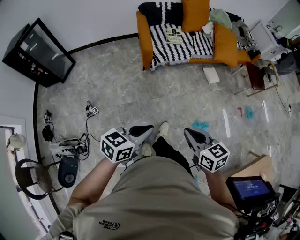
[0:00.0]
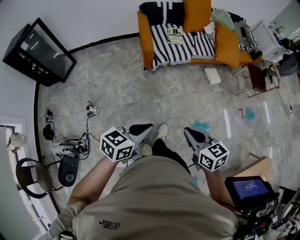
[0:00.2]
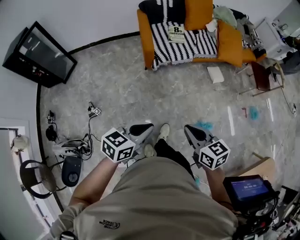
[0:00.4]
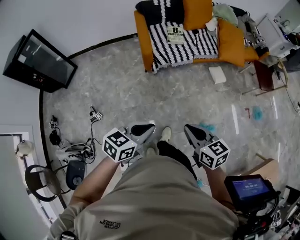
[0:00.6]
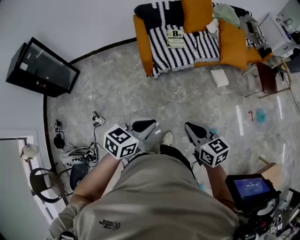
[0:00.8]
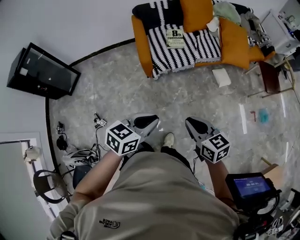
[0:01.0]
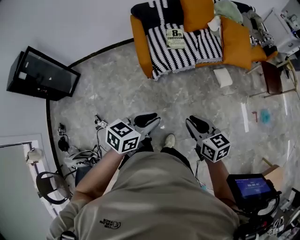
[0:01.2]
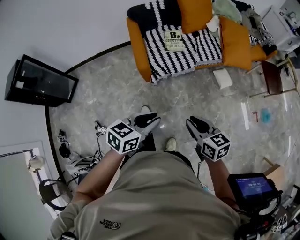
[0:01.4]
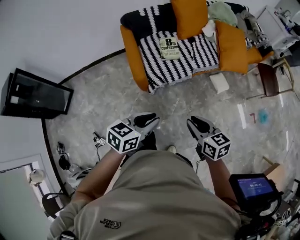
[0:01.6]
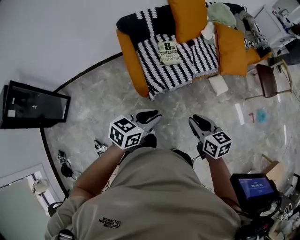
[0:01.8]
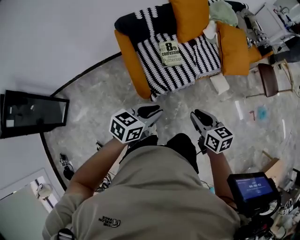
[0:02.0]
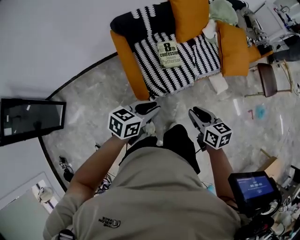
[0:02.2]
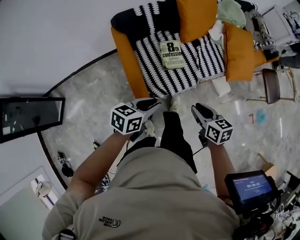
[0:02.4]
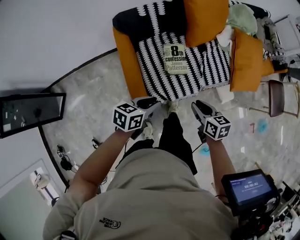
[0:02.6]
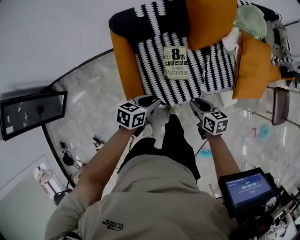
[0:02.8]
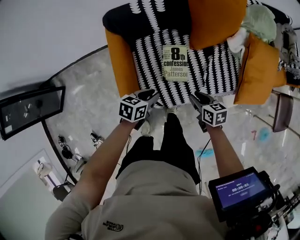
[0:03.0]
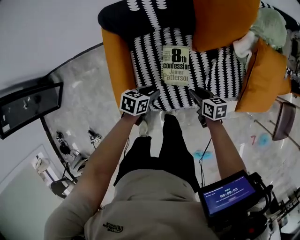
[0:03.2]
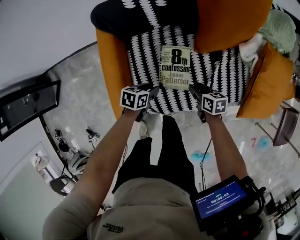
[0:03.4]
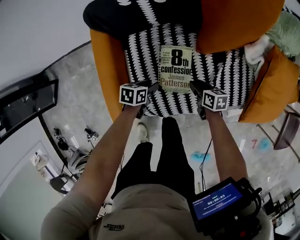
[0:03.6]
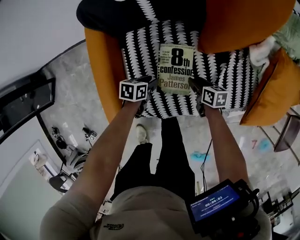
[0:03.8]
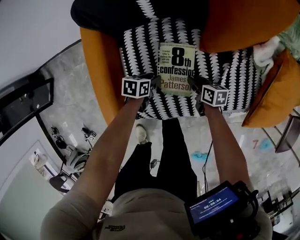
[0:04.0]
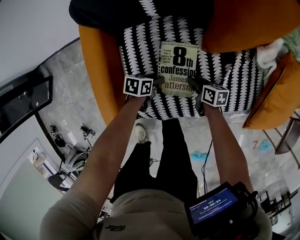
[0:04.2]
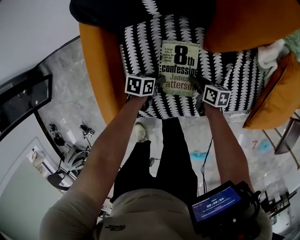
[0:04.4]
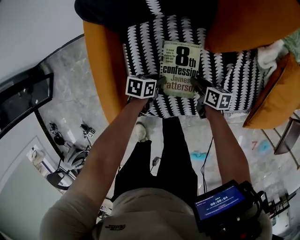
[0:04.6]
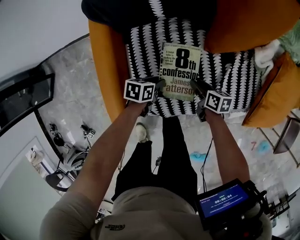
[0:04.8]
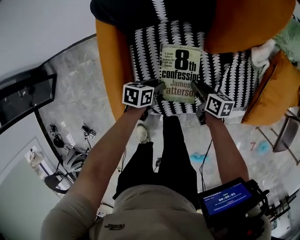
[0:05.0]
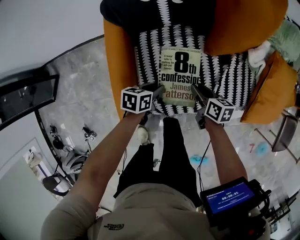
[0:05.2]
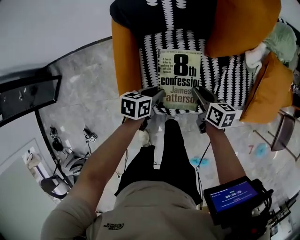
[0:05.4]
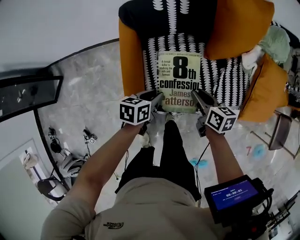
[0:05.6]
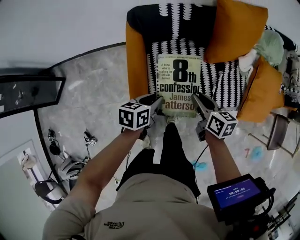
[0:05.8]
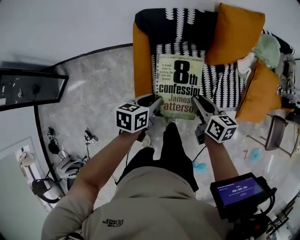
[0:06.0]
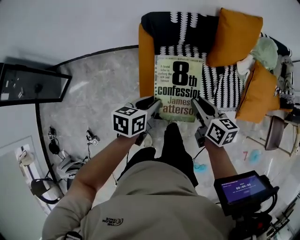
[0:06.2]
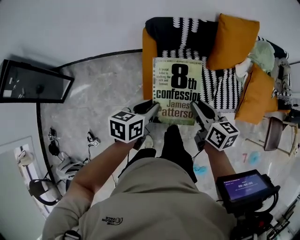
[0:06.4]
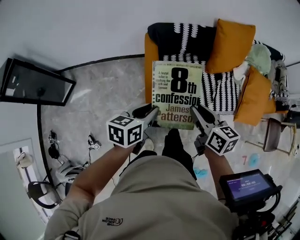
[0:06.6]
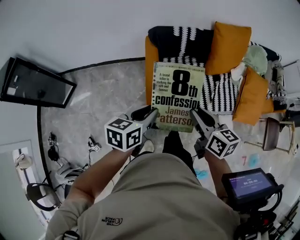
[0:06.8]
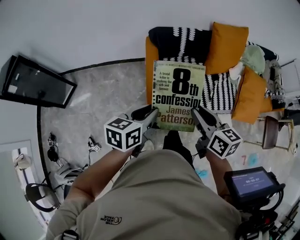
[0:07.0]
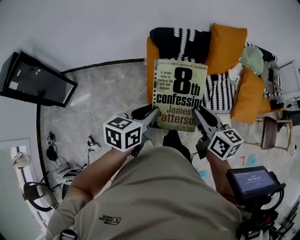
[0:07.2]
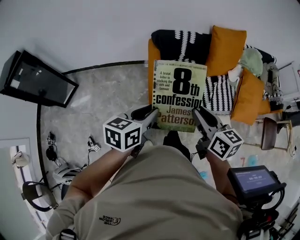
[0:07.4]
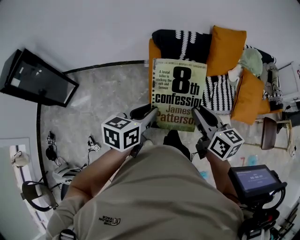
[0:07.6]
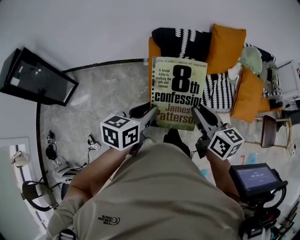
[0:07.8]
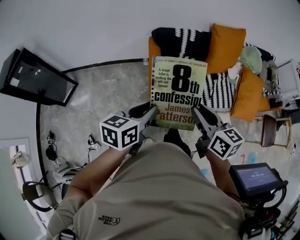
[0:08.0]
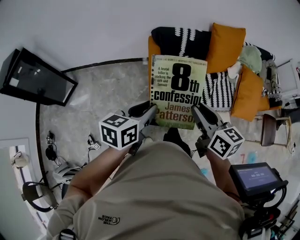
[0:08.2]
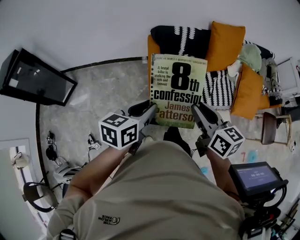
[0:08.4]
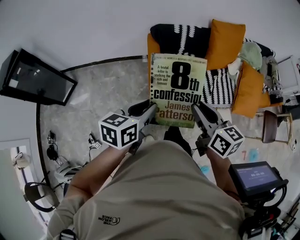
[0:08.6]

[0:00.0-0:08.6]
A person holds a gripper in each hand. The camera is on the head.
0.0 to 1.4 s: Both grippers move forward, approximately 30 cm.
1.4 to 2.8 s: The two grippers travel together, forward, approximately 40 cm.
2.8 to 4.4 s: The right gripper goes some 10 cm upward. Meanwhile the left gripper moves upward, about 5 cm.
4.4 to 7.2 s: The grippers stay close to where they were, moving slightly.
7.2 to 8.6 s: Both grippers stay put.

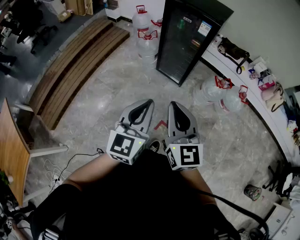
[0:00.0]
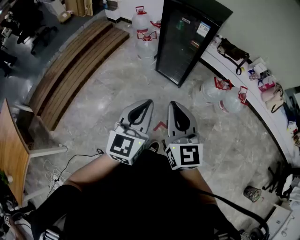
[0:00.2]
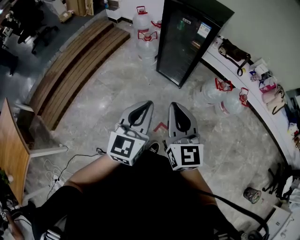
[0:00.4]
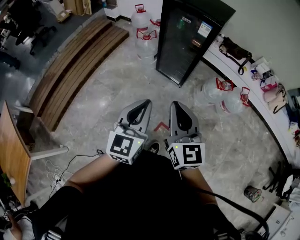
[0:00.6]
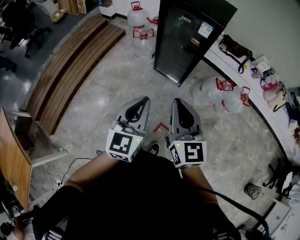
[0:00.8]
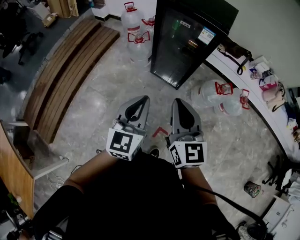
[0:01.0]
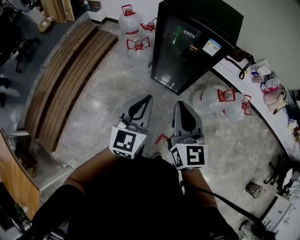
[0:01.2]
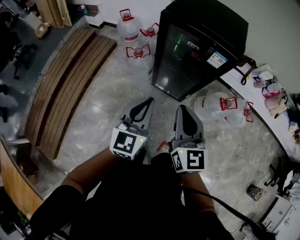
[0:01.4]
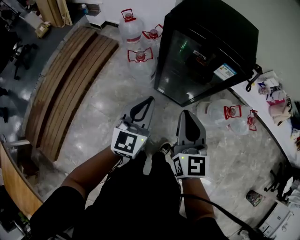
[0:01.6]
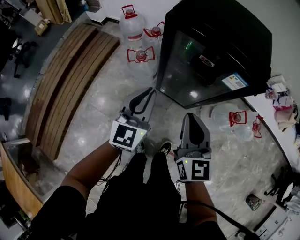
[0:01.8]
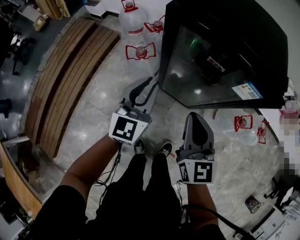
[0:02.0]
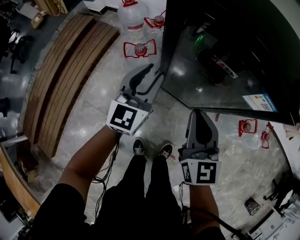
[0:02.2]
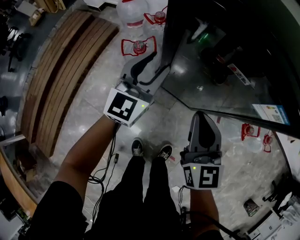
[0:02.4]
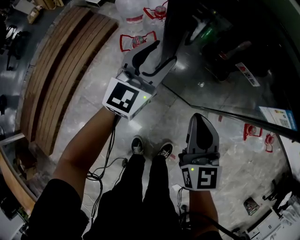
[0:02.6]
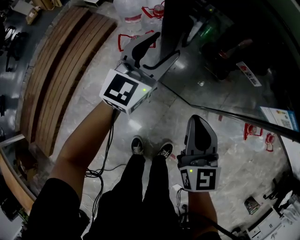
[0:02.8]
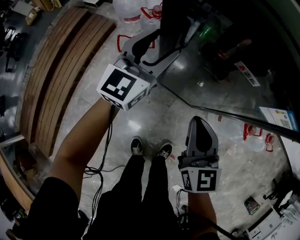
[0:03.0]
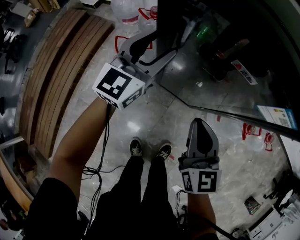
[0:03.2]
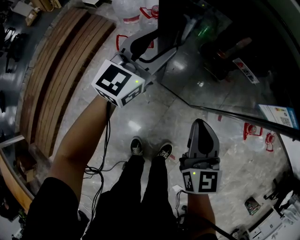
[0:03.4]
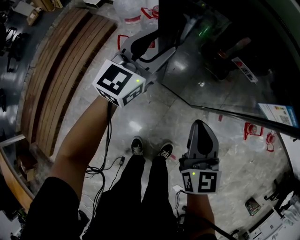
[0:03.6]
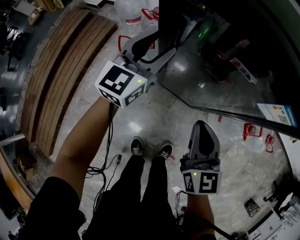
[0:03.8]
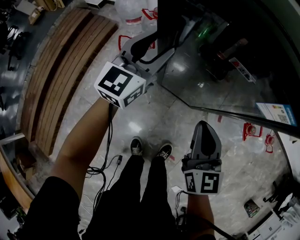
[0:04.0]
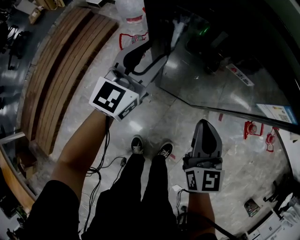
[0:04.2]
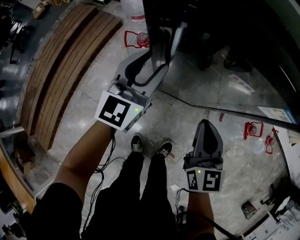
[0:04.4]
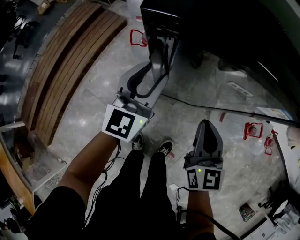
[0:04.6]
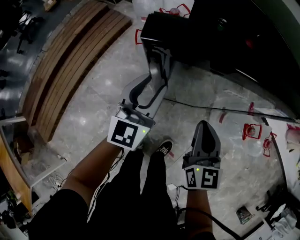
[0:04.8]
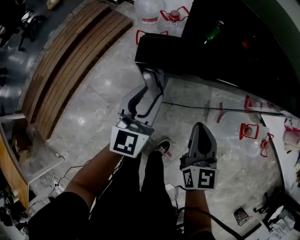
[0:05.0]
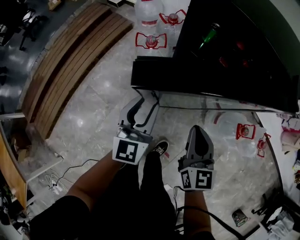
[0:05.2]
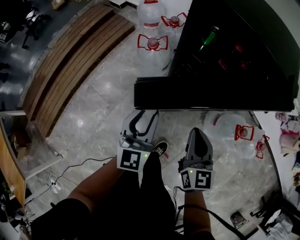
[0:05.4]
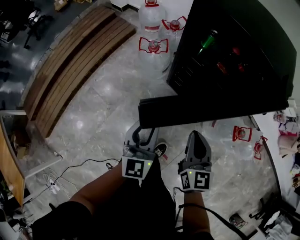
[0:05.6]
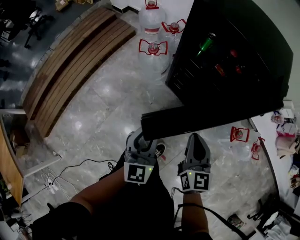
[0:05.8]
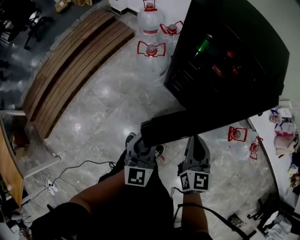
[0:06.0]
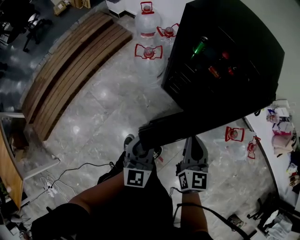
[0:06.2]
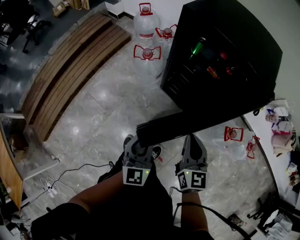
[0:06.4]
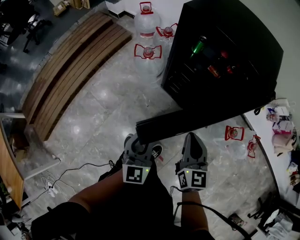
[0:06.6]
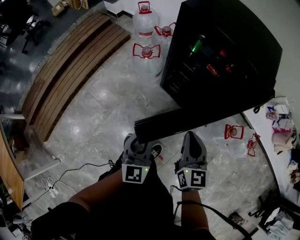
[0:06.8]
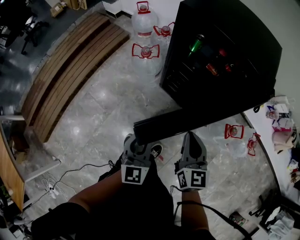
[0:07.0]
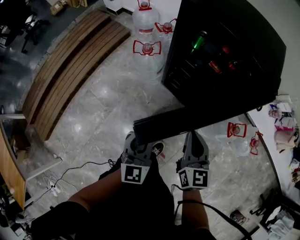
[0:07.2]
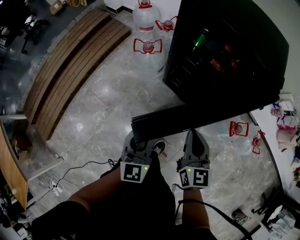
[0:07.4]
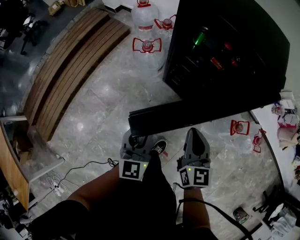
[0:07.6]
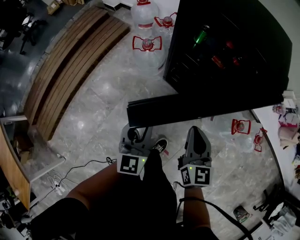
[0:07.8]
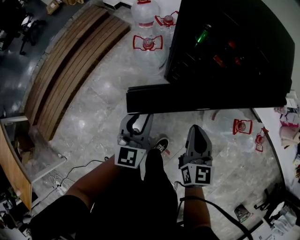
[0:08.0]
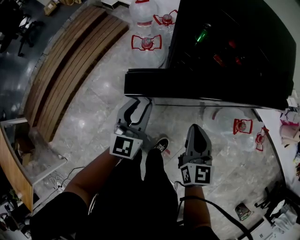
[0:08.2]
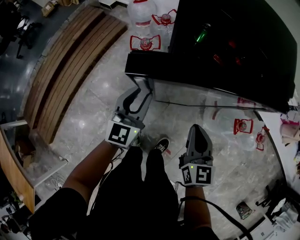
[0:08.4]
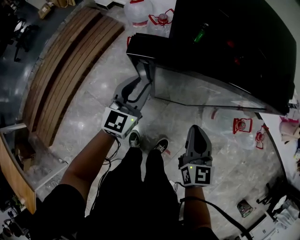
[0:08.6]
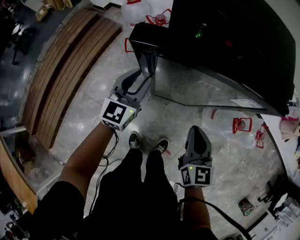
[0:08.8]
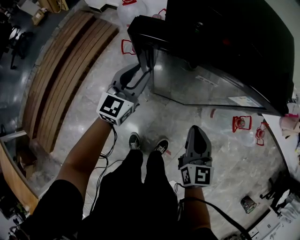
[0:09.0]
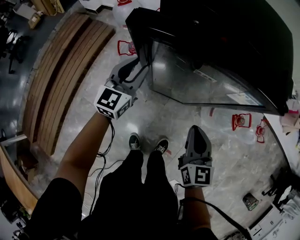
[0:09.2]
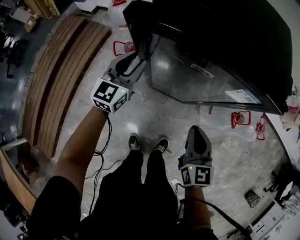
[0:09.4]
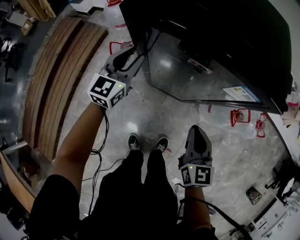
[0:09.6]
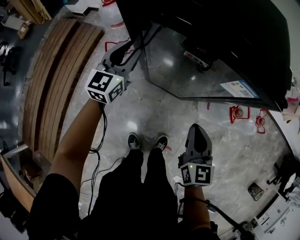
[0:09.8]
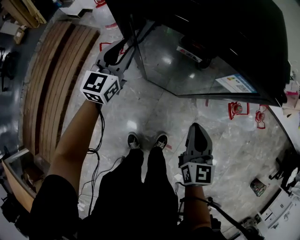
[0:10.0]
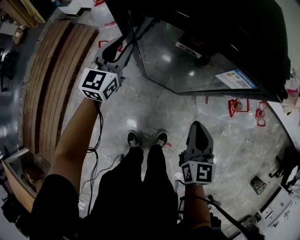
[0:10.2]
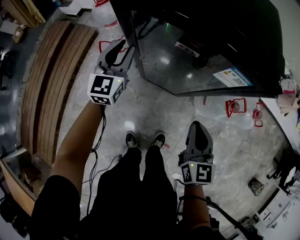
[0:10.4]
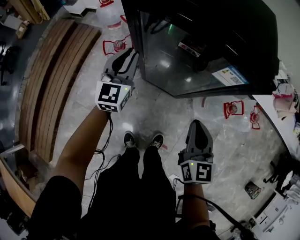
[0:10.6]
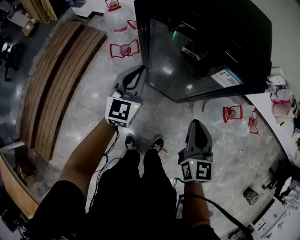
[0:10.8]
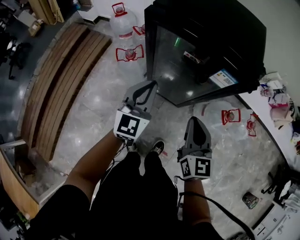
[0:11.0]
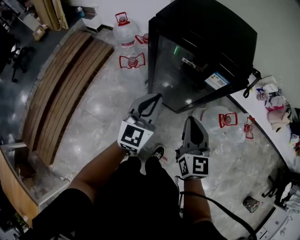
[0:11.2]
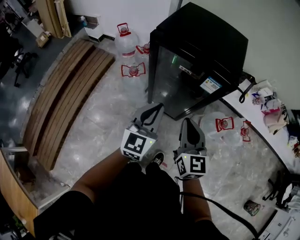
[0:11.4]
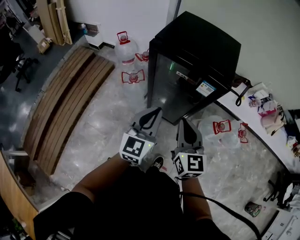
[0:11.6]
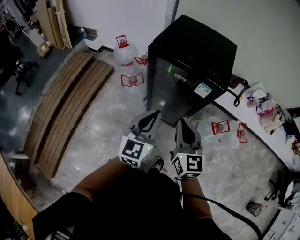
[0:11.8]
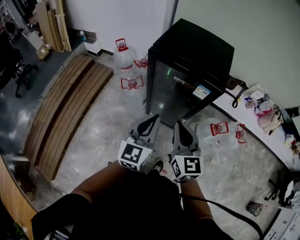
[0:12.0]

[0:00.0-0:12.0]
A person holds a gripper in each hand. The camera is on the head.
0.0 to 1.6 s: The pair of grippers is taken forward, some 40 cm.
1.6 to 3.0 s: The right gripper is displaced downward and forward by roughly 30 cm. The left gripper is displaced forward and downward by approximately 35 cm, and opens its fingers.
3.0 to 4.4 s: The left gripper heads backward, covering approximately 10 cm.
4.4 to 6.0 s: The left gripper travels backward by approximately 30 cm, and changes its angle by roughly 20 degrees, while the right gripper moves backward and upward, roughly 15 cm.
6.0 to 7.6 s: The grippers move only a little.
7.6 to 9.0 s: The right gripper heads forward, covering some 5 cm, while the left gripper moves forward, approximately 25 cm, and swivels some 20 degrees.
9.0 to 10.4 s: The right gripper travels to the right by about 5 cm; the left gripper moves forward, about 10 cm.
10.4 to 12.0 s: The right gripper heads upward and to the left, covering some 25 cm; the left gripper is displaced backward and upward by approximately 35 cm, and closes its fingers.

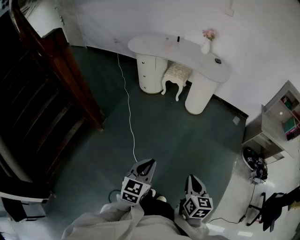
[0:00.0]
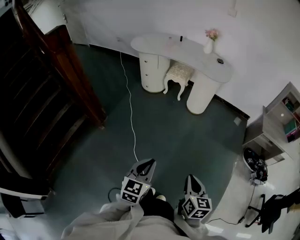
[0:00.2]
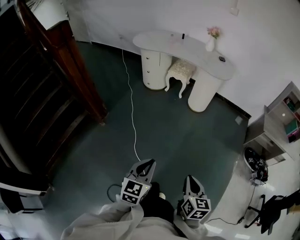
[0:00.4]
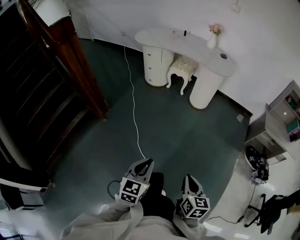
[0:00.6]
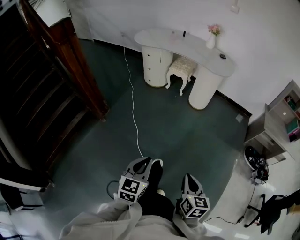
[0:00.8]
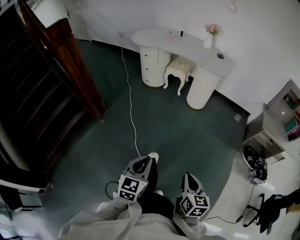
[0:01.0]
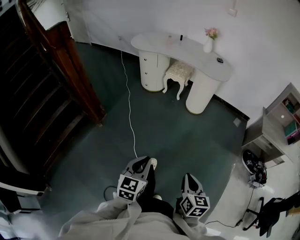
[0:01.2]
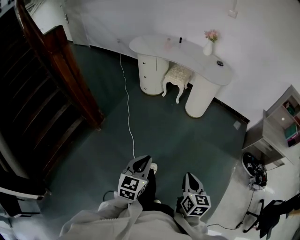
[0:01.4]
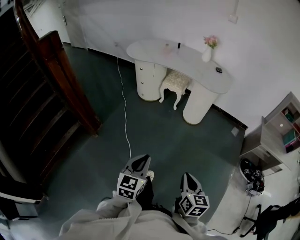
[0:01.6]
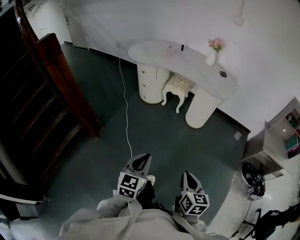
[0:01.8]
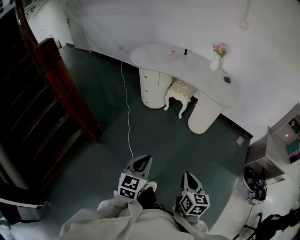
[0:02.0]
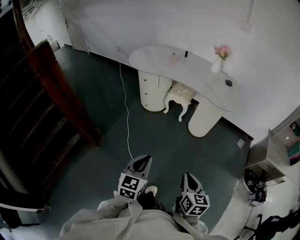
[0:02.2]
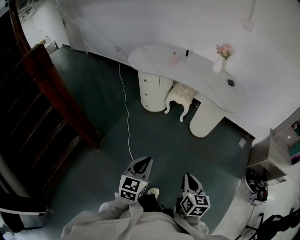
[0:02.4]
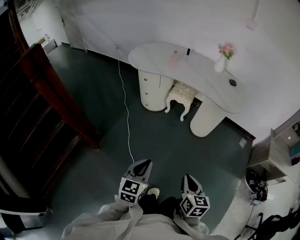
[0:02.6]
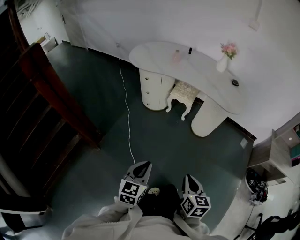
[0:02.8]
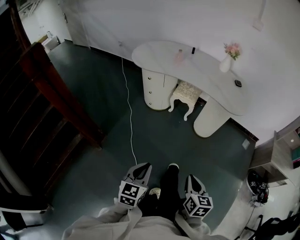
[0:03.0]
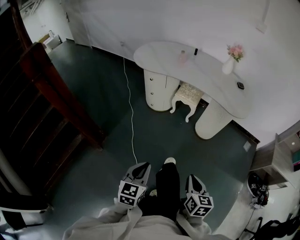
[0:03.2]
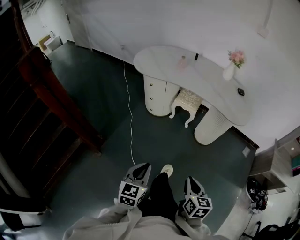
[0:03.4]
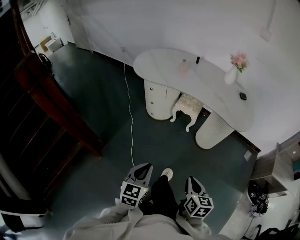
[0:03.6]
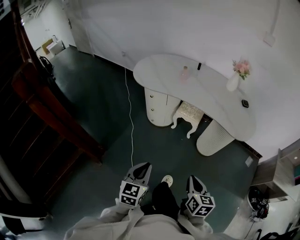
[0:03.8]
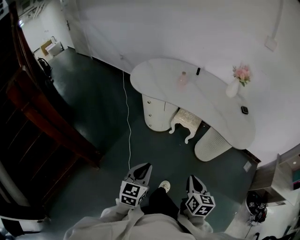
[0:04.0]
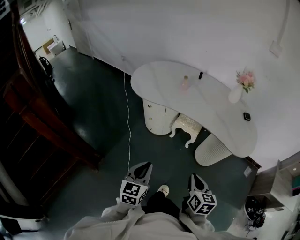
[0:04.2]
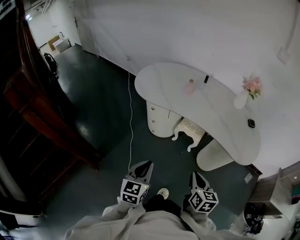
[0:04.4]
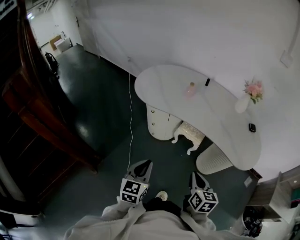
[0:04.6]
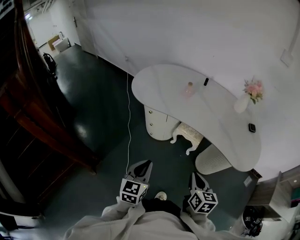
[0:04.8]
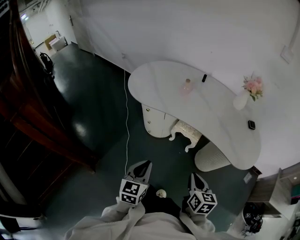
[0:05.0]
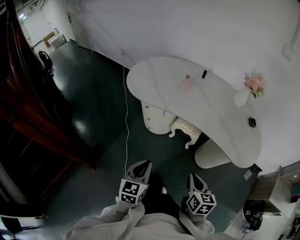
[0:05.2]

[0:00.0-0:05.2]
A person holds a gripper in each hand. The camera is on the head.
0.0 to 1.8 s: Both grippers travel together forward, approximately 15 cm.
1.8 to 3.4 s: The right gripper travels forward by approximately 20 cm. Meanwhile the left gripper is displaced forward and to the left by approximately 20 cm.
3.4 to 5.2 s: Both grippers travel together forward, approximately 30 cm.
